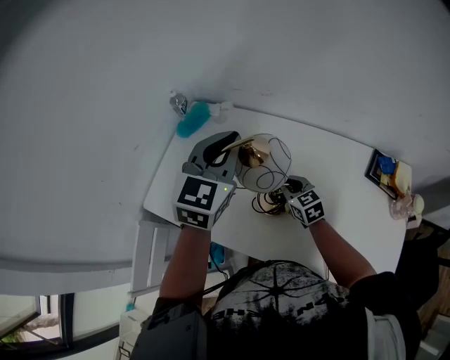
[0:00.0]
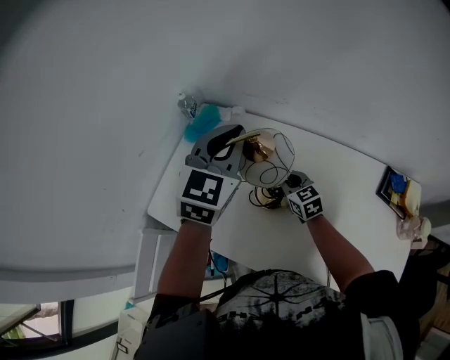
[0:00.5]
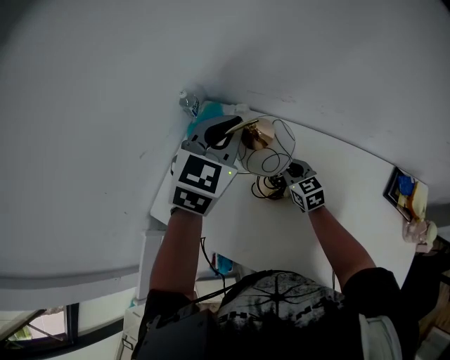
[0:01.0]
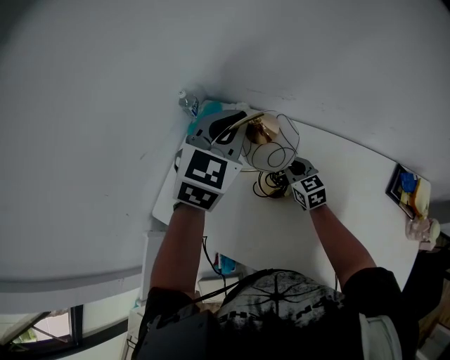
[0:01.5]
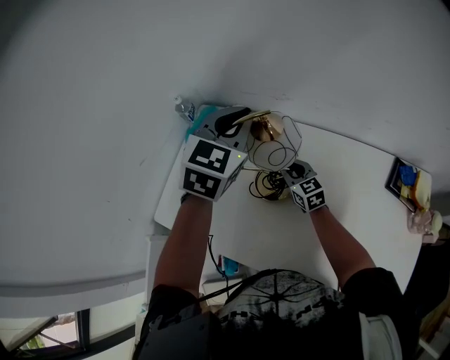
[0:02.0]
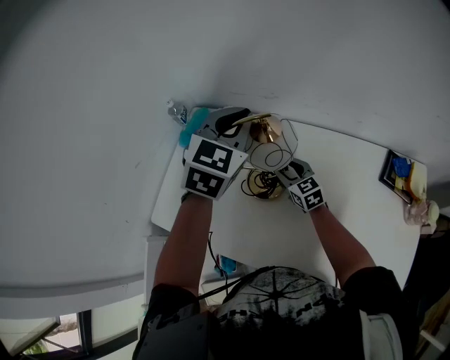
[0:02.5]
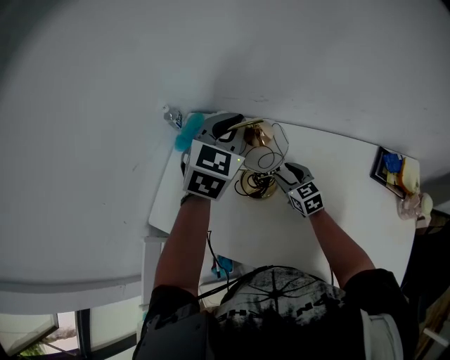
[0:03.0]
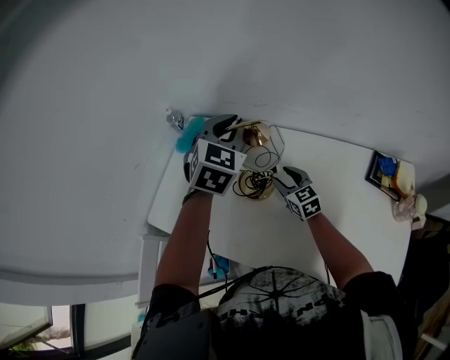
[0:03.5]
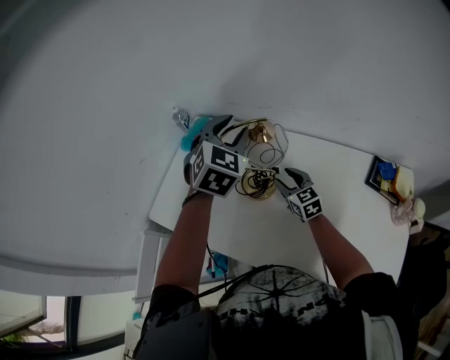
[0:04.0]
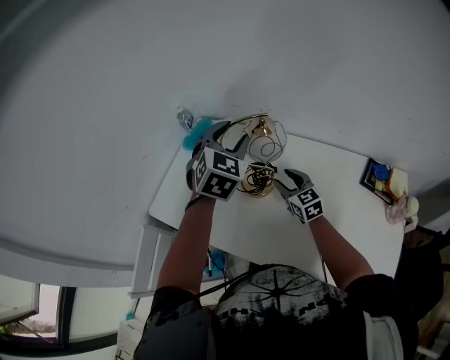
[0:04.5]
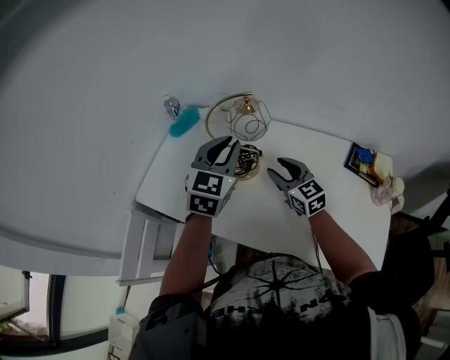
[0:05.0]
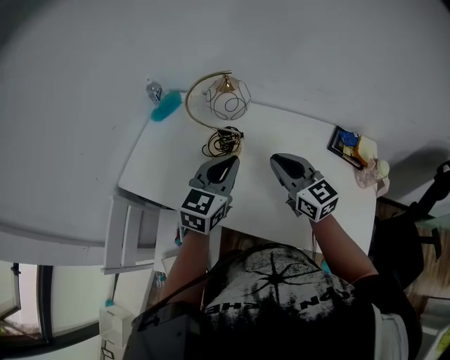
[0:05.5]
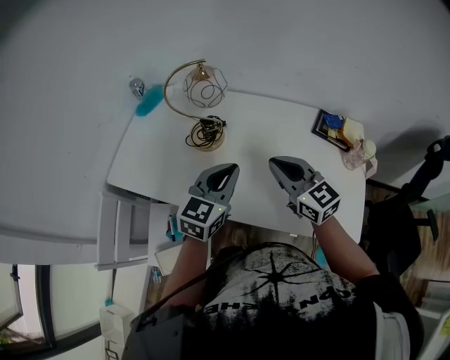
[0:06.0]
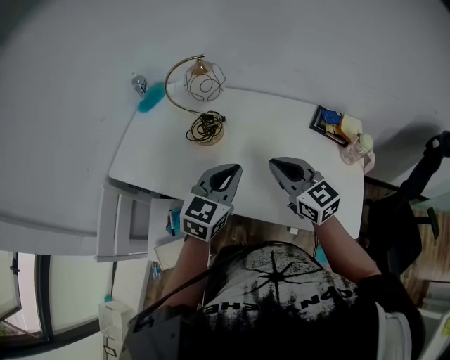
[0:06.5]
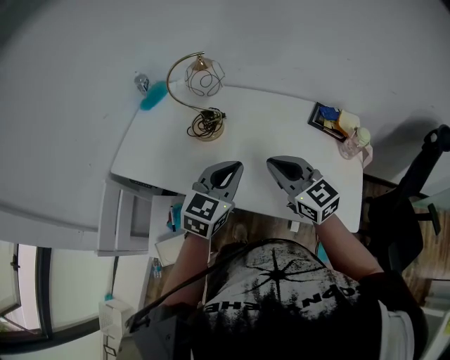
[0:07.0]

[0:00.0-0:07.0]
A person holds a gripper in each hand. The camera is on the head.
0:00.0 to 0:02.0: Both grippers travel together forward, approximately 15 cm.
0:02.0 to 0:03.5: The right gripper goes roughly 5 cm backward, and opens up.
0:03.5 to 0:05.0: The left gripper is displaced backward by about 15 cm, and opens, then closes again. Meanwhile the right gripper goes some 15 cm upward and backward.
0:05.0 to 0:07.0: The left gripper moves backward and to the right, about 25 cm, while the right gripper travels backward by some 20 cm, and closes.

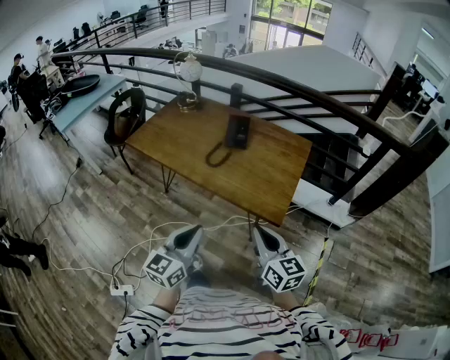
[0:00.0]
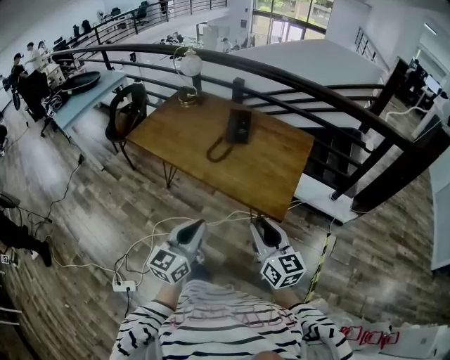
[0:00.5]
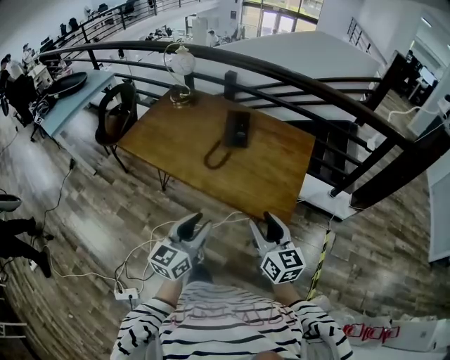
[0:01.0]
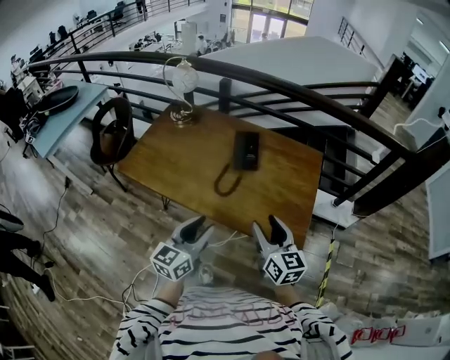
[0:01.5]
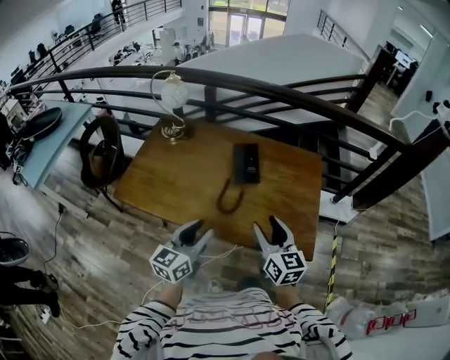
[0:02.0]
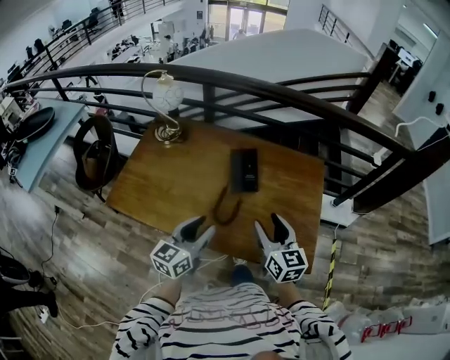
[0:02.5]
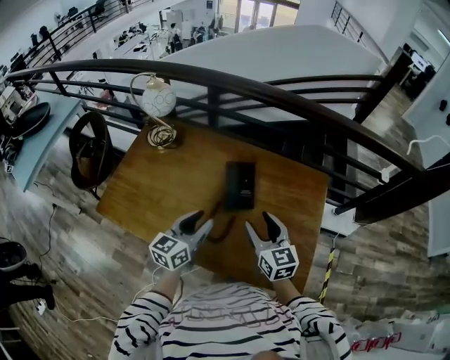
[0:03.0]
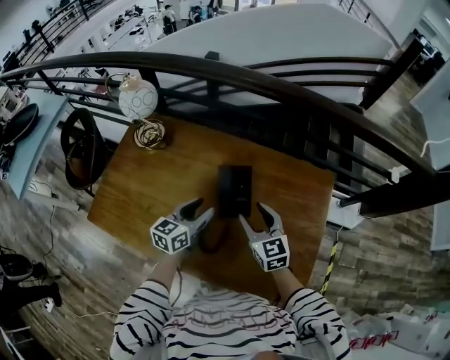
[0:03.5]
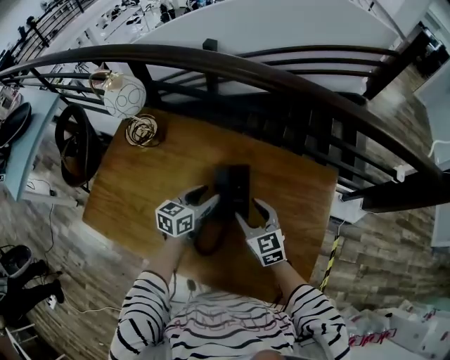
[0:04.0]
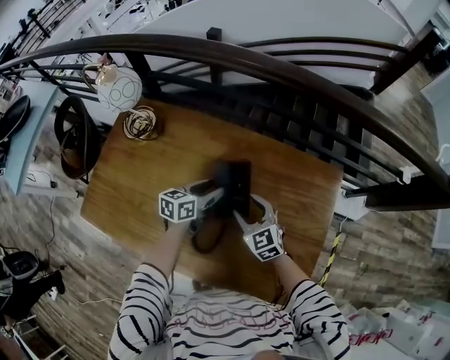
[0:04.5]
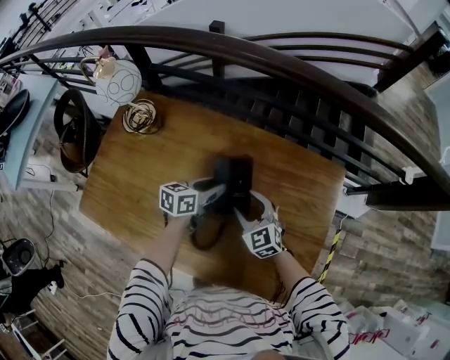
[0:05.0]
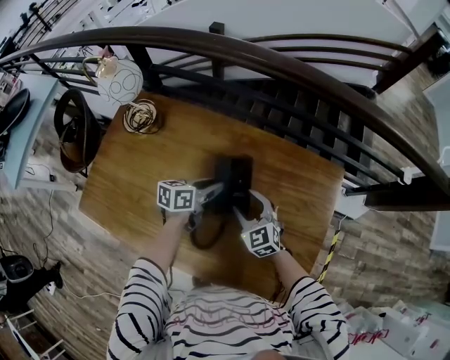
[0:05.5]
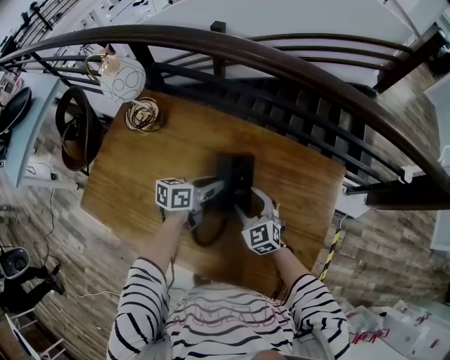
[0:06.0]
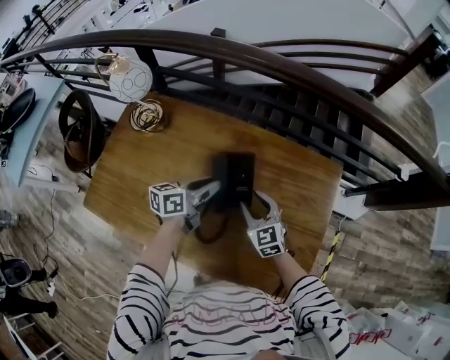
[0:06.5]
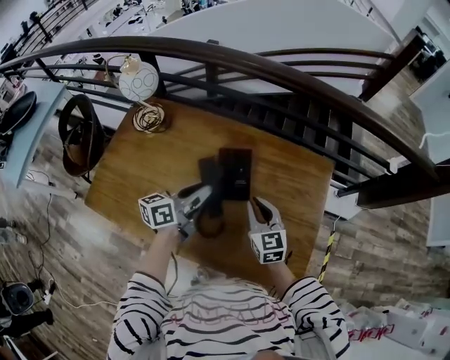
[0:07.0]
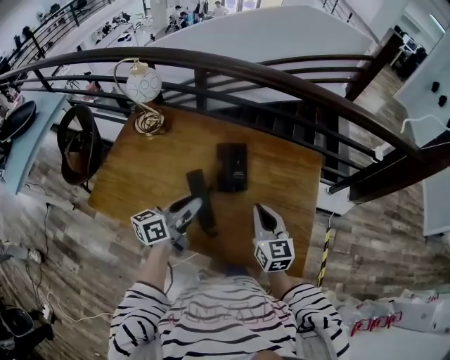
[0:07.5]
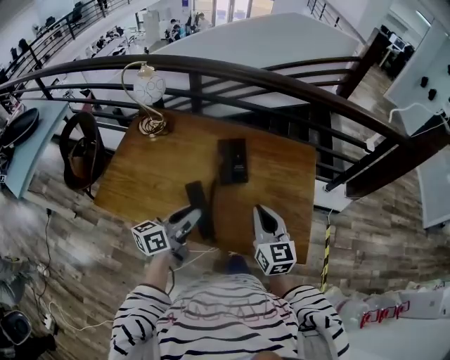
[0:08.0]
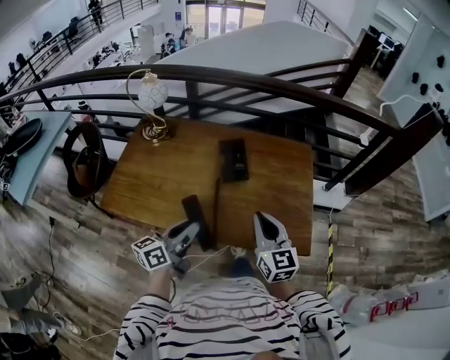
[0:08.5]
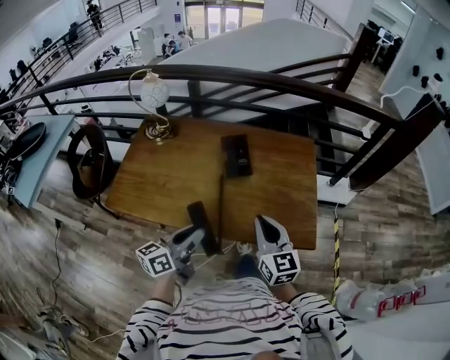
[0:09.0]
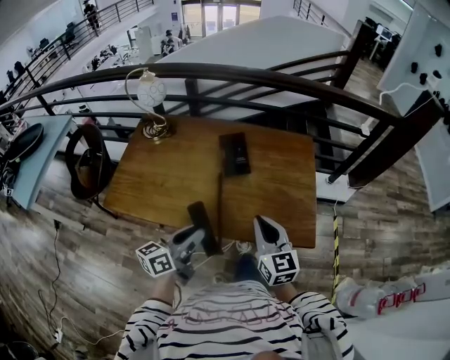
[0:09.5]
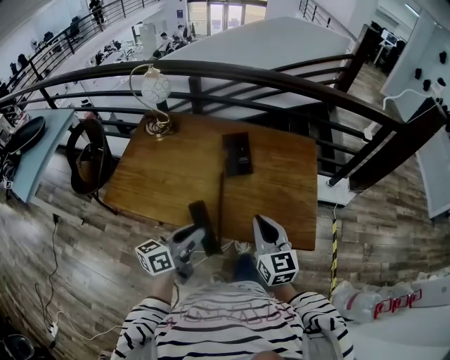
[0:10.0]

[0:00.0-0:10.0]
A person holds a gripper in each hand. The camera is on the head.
0:00.0 to 0:02.0: Both grippers travel together forward and to the left, roughly 35 cm. The right gripper opens up. Meanwhile the left gripper opens.
0:02.0 to 0:04.0: The right gripper shifts some 40 cm forward and downward, and swivels approximately 30 degrees, while the left gripper goes roughly 40 cm forward, and turns by about 20 degrees.
0:04.0 to 0:06.0: The left gripper swivels about 20 degrees, and closes. Meanwhile the right gripper is displaced downward by some 5 cm.
0:06.0 to 0:08.0: Both grippers travel together backward and upward, some 35 cm. The right gripper rotates about 40 degrees, and closes its fingers. Meanwhile the left gripper swivels roughly 20 degrees.
0:08.0 to 0:10.0: The two grippers go about 10 cm backward.

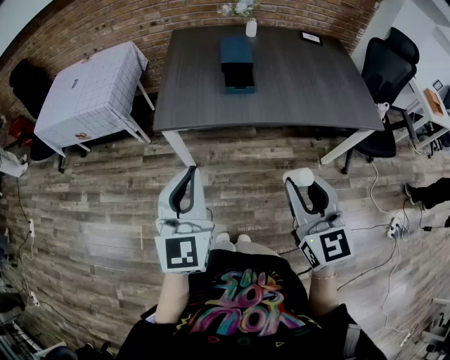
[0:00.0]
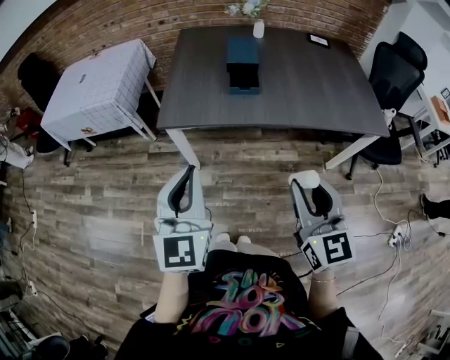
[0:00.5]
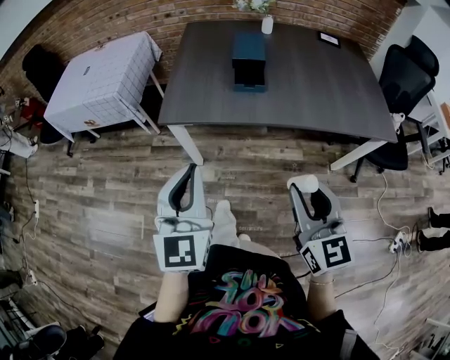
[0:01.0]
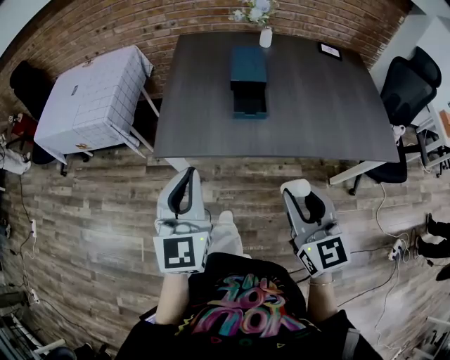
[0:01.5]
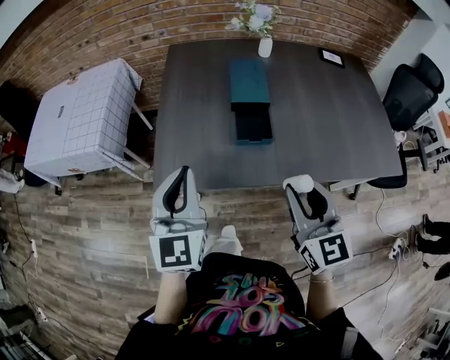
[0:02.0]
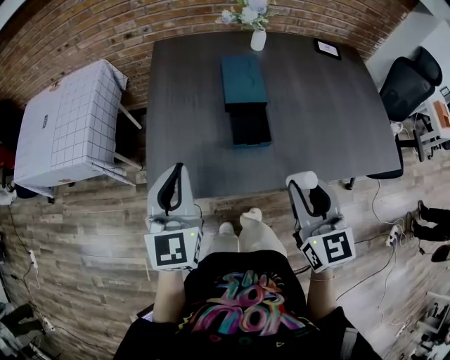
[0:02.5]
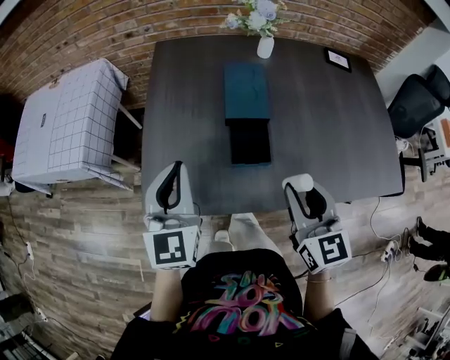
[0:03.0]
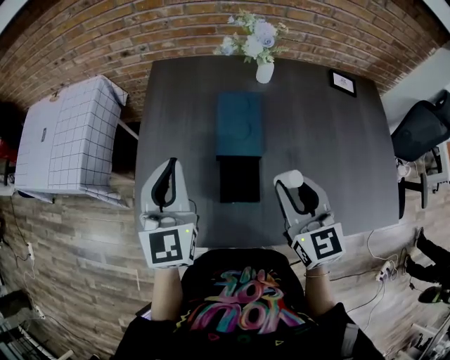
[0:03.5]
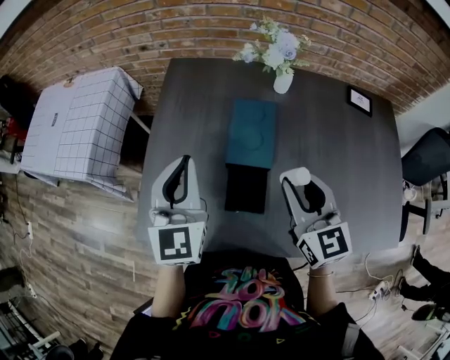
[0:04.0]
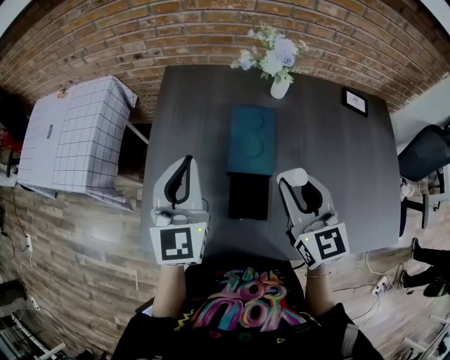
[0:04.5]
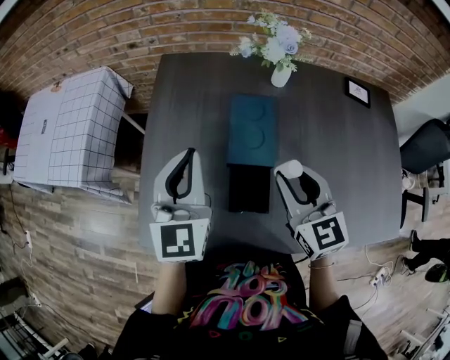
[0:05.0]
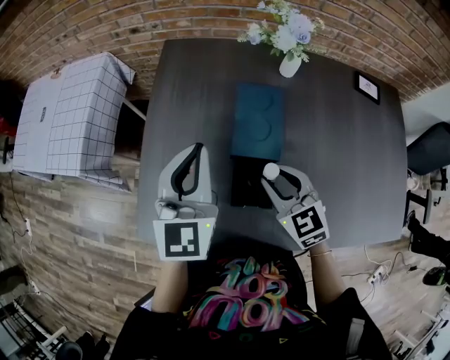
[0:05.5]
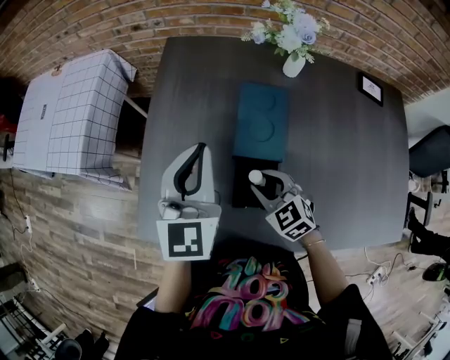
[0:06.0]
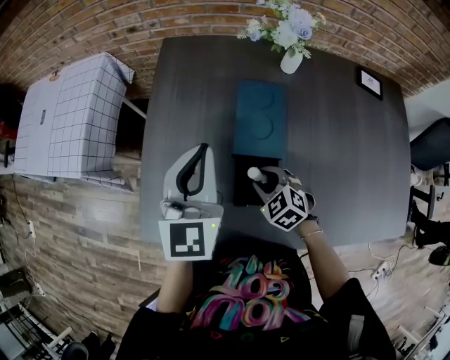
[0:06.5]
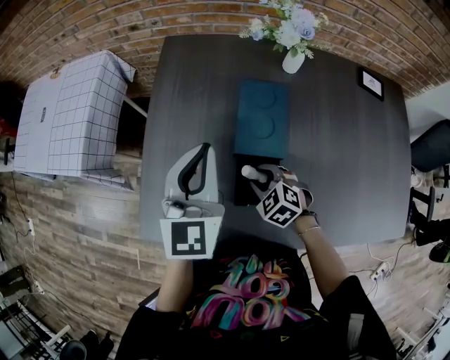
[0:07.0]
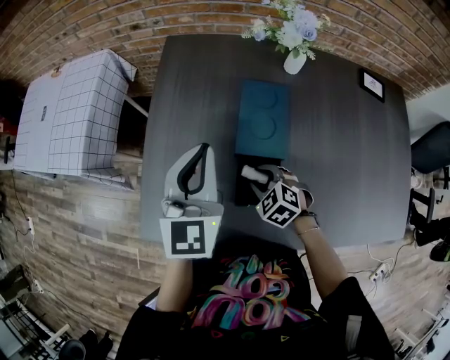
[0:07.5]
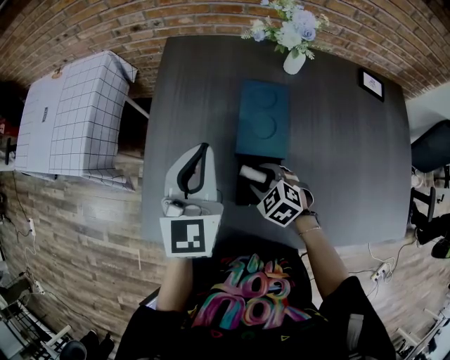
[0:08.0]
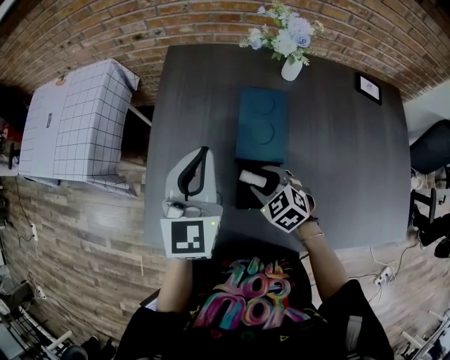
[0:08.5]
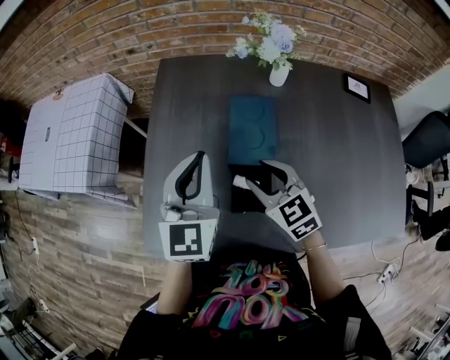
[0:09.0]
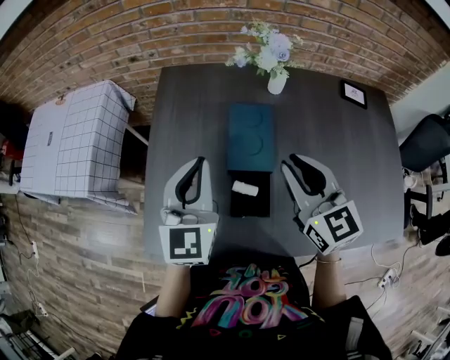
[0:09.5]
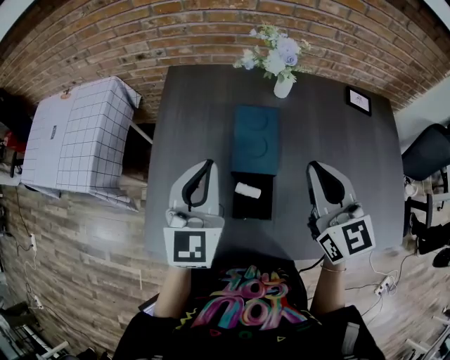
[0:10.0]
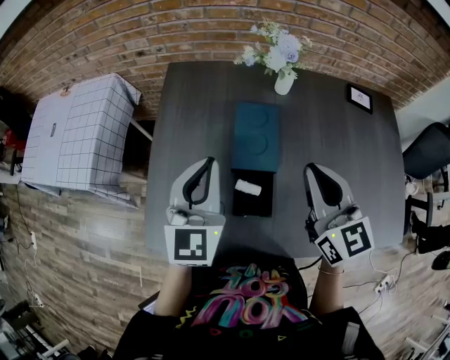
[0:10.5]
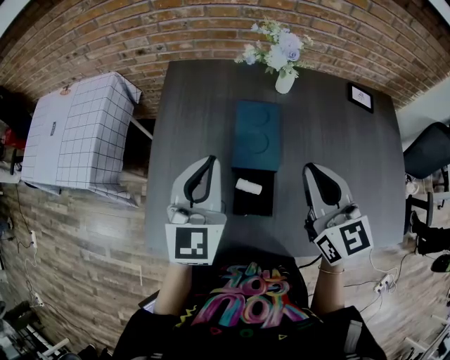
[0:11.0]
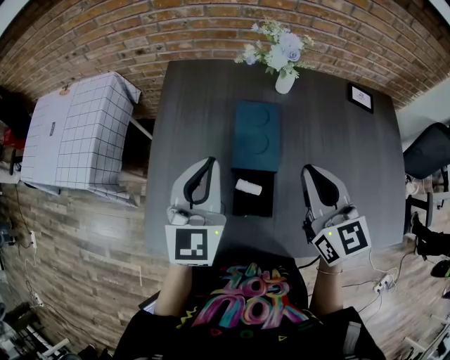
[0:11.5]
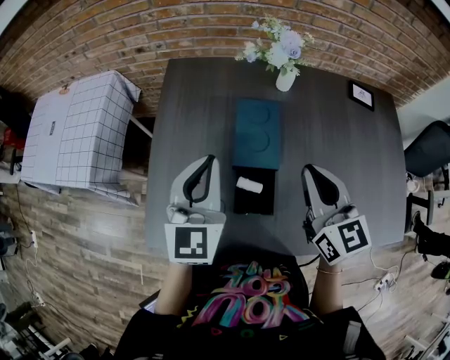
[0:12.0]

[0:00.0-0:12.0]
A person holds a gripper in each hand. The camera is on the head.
0:00.0 to 0:02.0: The two grippers go some 25 cm forward.
0:02.0 to 0:04.0: Both grippers travel together forward, roughly 25 cm.
0:04.0 to 0:06.0: The right gripper is displaced downward and to the left by some 20 cm, and turns by approximately 40 degrees.
0:06.0 to 0:08.0: The right gripper shifts roughly 5 cm downward.
0:08.0 to 0:10.0: The right gripper goes about 30 cm upward, angles its fingers upward, by about 50 degrees, and closes up.
0:10.0 to 0:12.0: The grippers move only a little.
